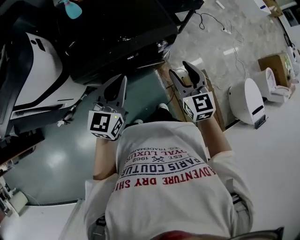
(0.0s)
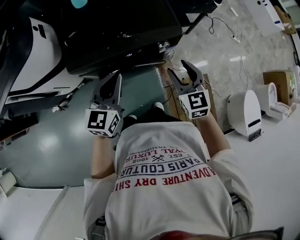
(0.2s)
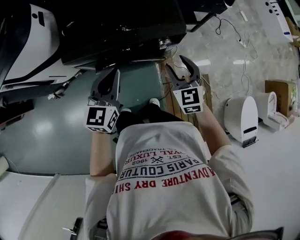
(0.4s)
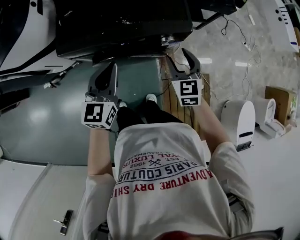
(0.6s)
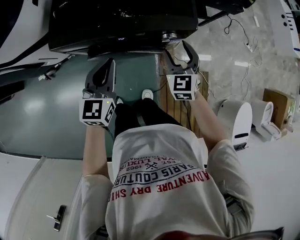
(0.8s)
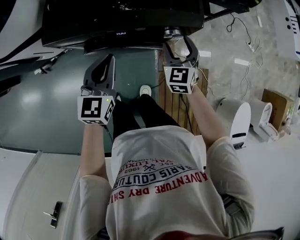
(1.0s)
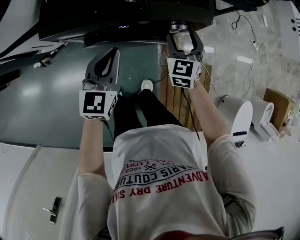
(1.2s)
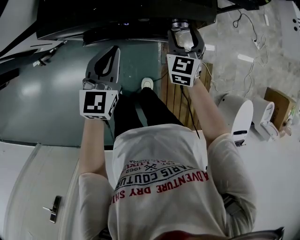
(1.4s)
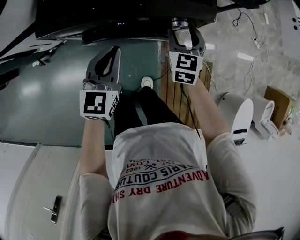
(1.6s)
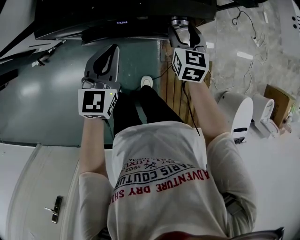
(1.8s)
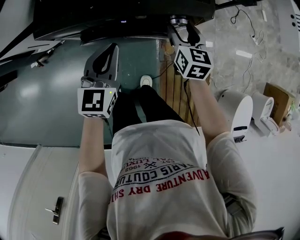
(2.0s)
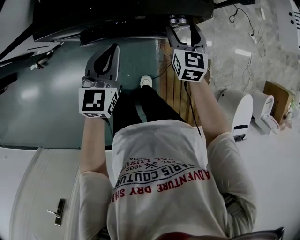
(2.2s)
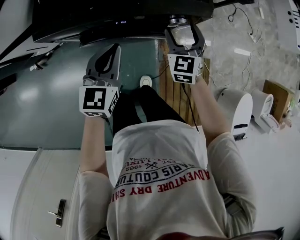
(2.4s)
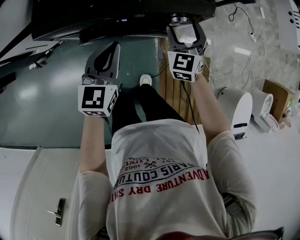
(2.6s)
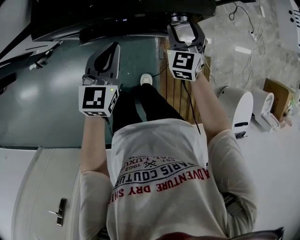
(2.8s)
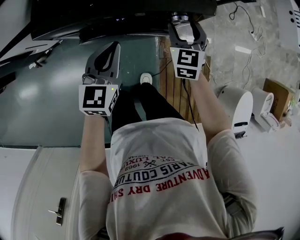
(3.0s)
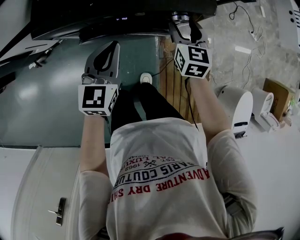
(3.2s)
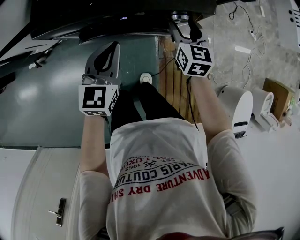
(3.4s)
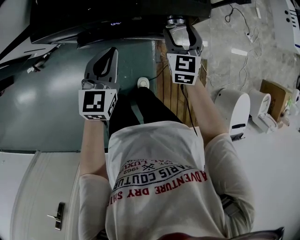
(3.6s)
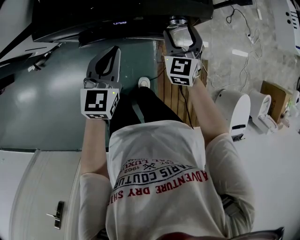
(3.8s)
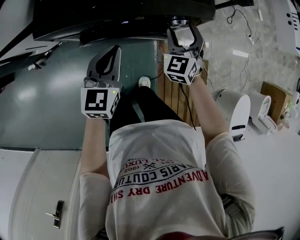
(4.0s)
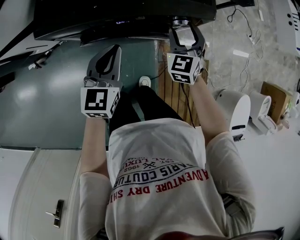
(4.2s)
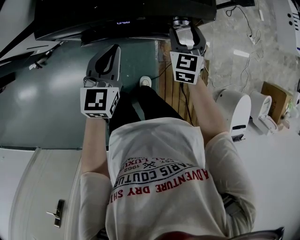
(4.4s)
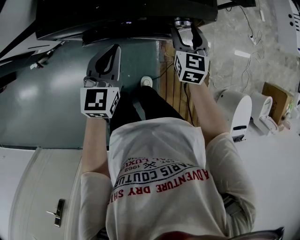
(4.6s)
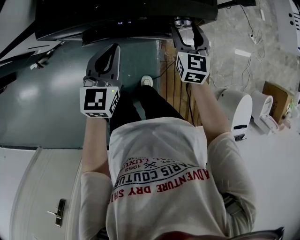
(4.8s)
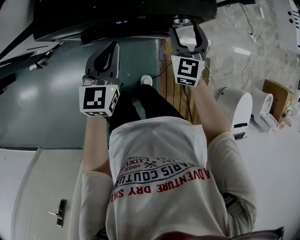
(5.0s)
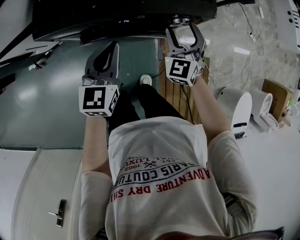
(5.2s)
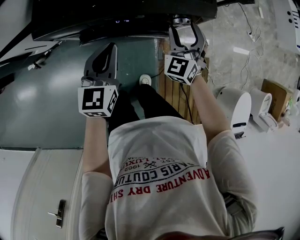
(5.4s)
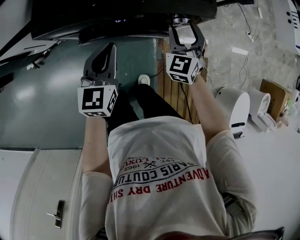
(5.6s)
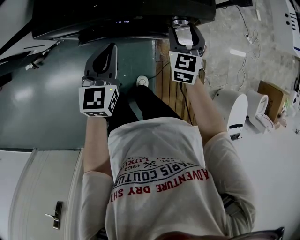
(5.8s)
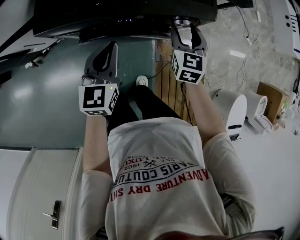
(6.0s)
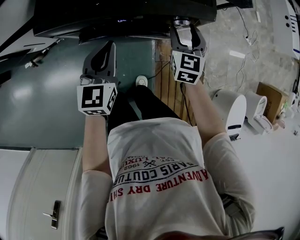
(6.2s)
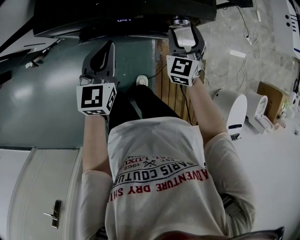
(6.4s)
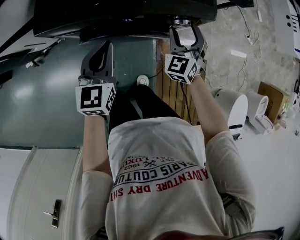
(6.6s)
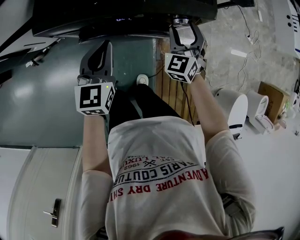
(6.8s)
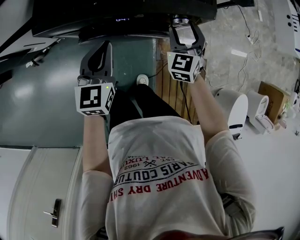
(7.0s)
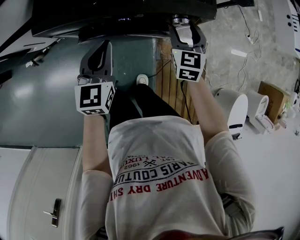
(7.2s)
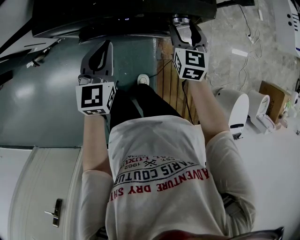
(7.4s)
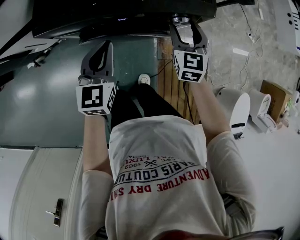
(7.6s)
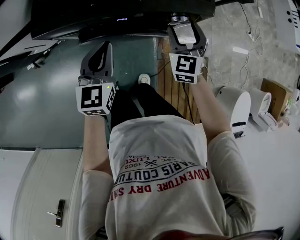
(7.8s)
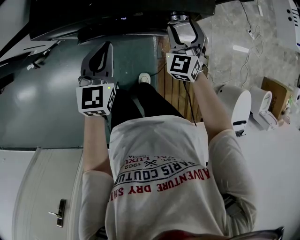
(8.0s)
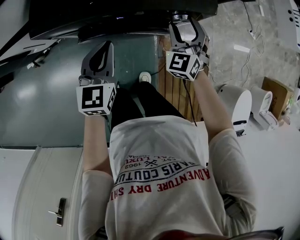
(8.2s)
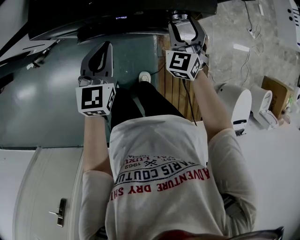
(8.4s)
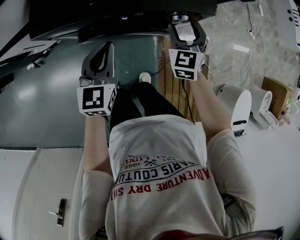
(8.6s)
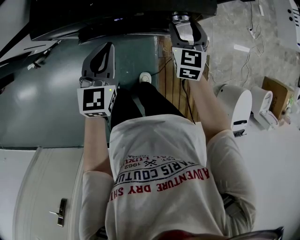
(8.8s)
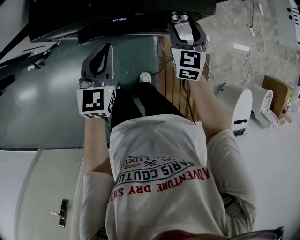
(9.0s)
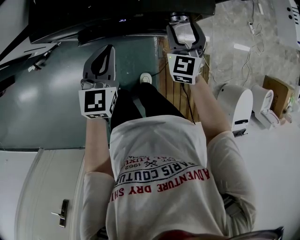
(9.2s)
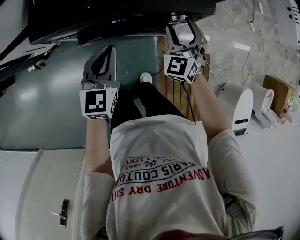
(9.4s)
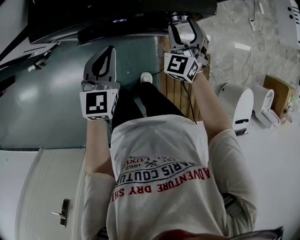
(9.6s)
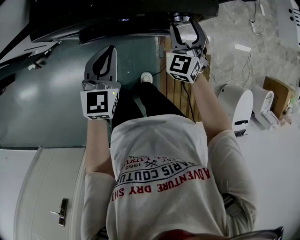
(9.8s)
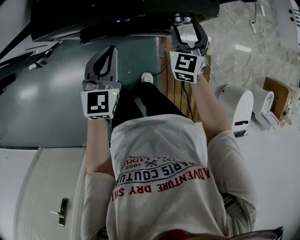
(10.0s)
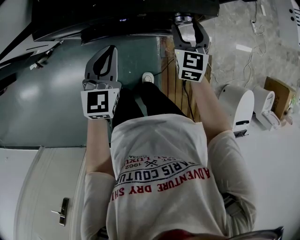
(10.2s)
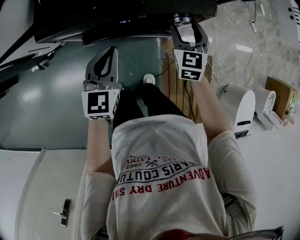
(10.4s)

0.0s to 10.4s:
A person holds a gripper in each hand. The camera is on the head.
0.0s to 1.4s: The right gripper moves downward and forward, about 25 cm, while the left gripper heads downward, covering roughly 15 cm, and swivels roughly 30 degrees.
3.0s to 4.4s: The grippers make only small movements.

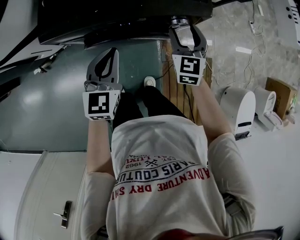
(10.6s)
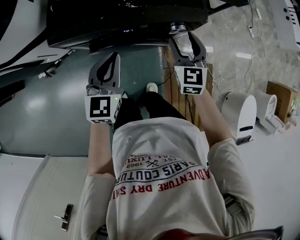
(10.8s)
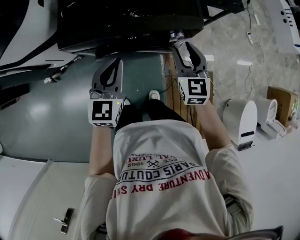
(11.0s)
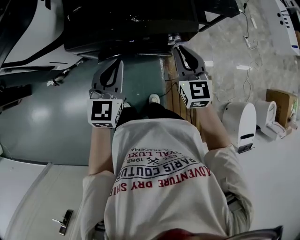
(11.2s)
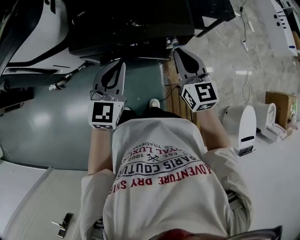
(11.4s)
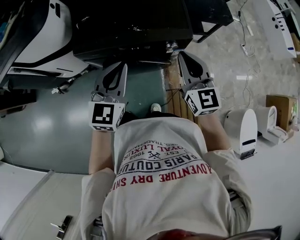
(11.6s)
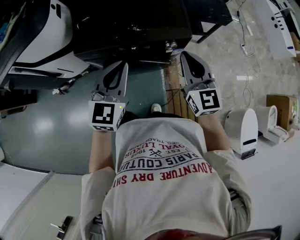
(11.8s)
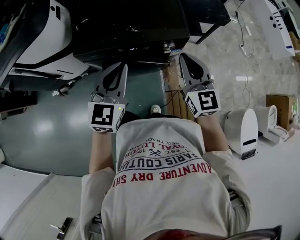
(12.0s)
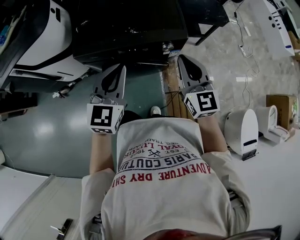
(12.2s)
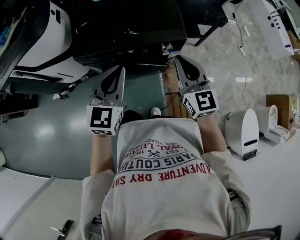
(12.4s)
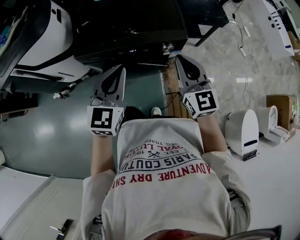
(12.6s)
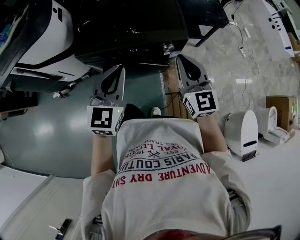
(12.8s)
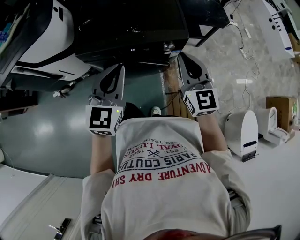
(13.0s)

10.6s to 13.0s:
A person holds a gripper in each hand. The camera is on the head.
10.6s to 11.8s: The right gripper goes some 25 cm upward and backward, swivels some 20 degrees, and closes its fingers. Meanwhile the left gripper travels upward by about 20 cm.
11.8s to 13.0s: The grippers stay close to where they were, moving slightly.

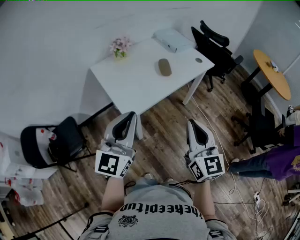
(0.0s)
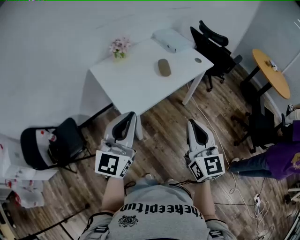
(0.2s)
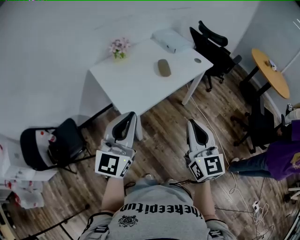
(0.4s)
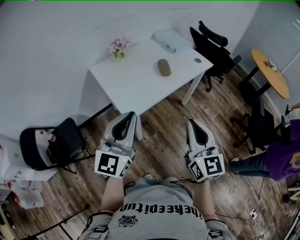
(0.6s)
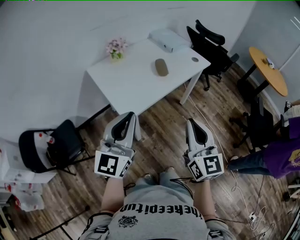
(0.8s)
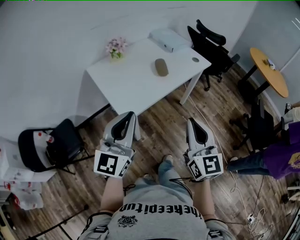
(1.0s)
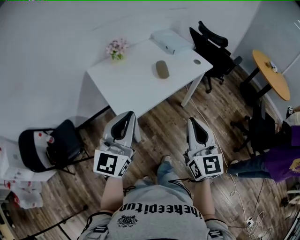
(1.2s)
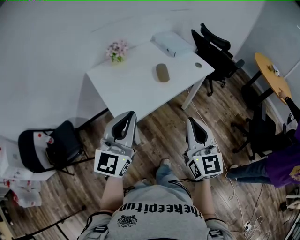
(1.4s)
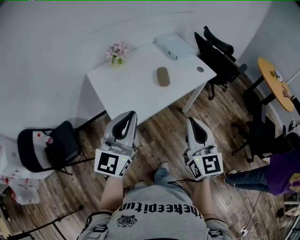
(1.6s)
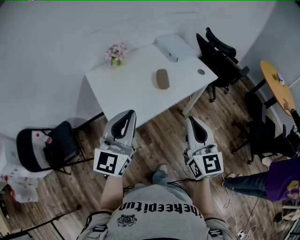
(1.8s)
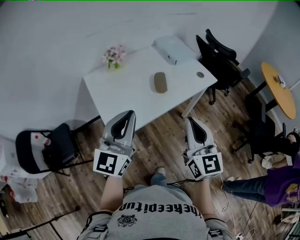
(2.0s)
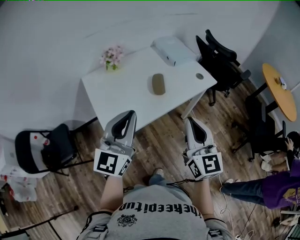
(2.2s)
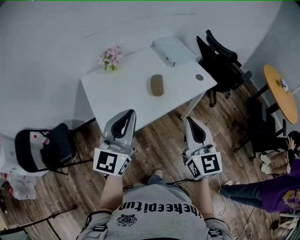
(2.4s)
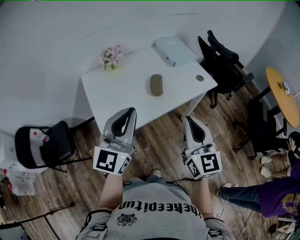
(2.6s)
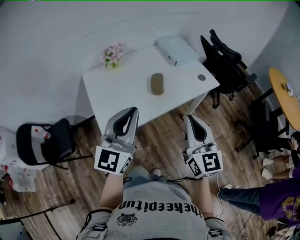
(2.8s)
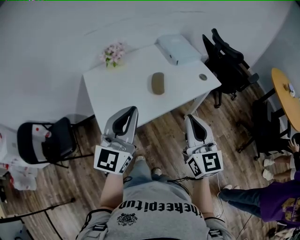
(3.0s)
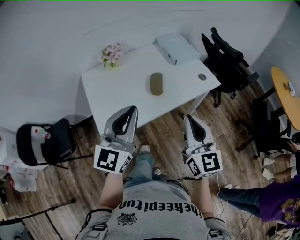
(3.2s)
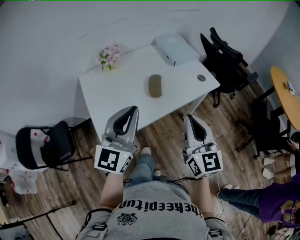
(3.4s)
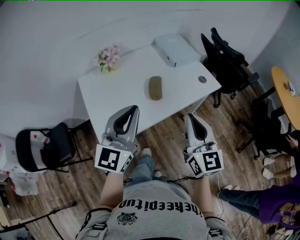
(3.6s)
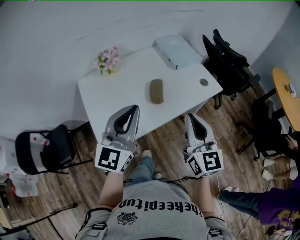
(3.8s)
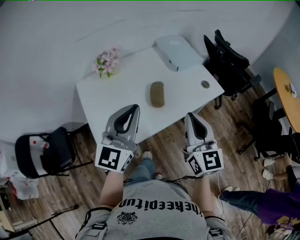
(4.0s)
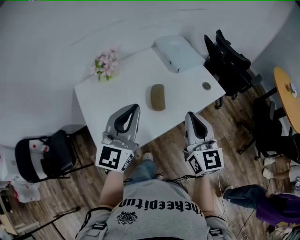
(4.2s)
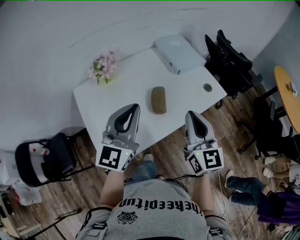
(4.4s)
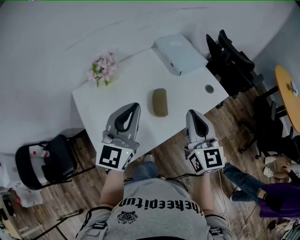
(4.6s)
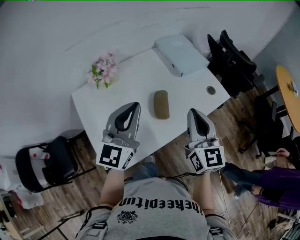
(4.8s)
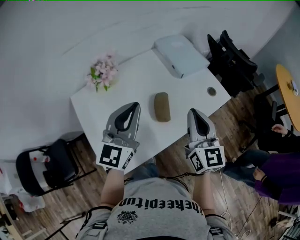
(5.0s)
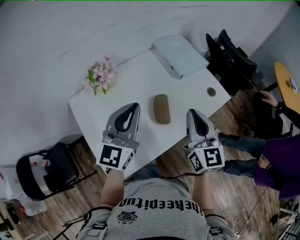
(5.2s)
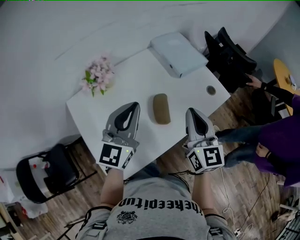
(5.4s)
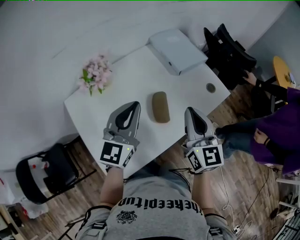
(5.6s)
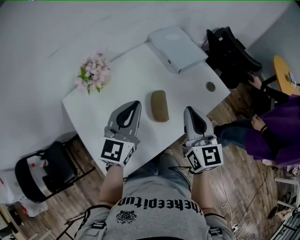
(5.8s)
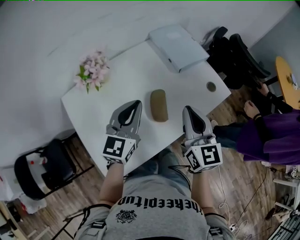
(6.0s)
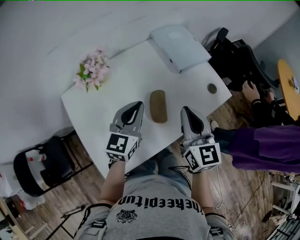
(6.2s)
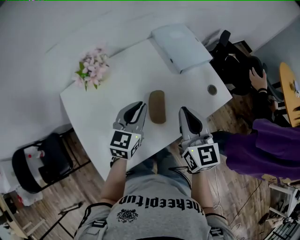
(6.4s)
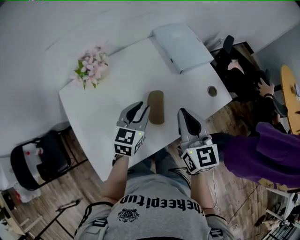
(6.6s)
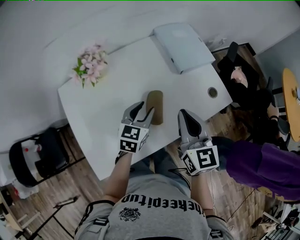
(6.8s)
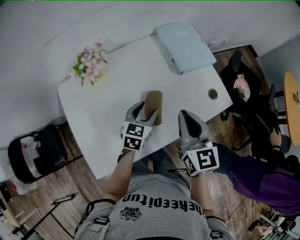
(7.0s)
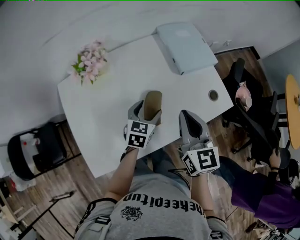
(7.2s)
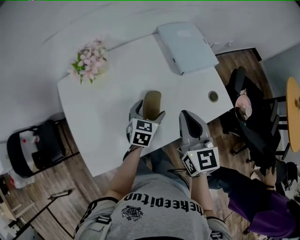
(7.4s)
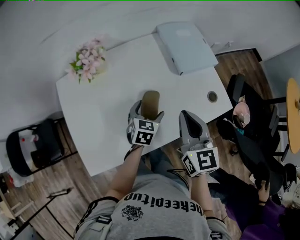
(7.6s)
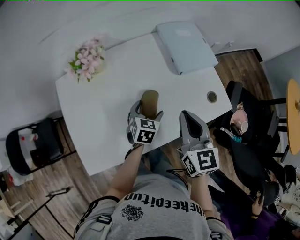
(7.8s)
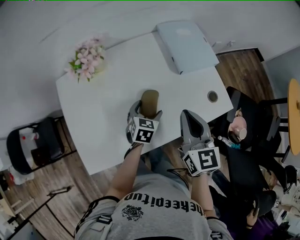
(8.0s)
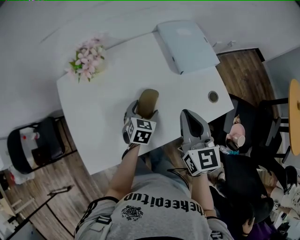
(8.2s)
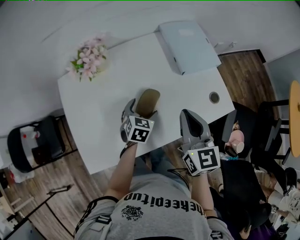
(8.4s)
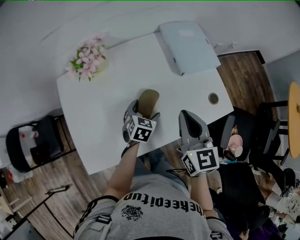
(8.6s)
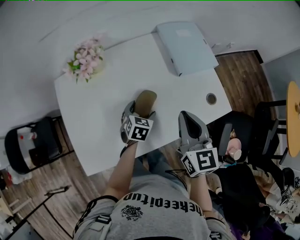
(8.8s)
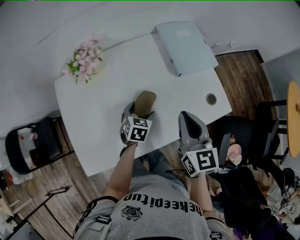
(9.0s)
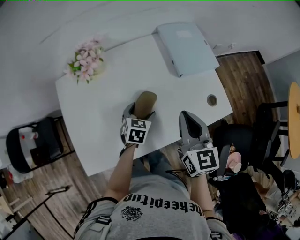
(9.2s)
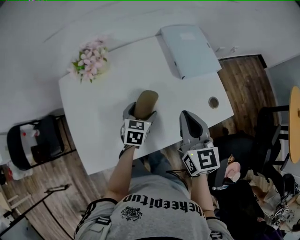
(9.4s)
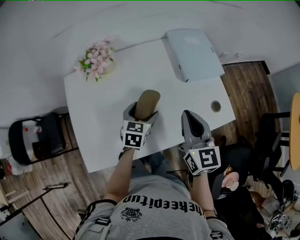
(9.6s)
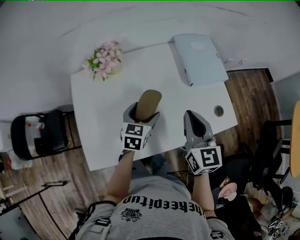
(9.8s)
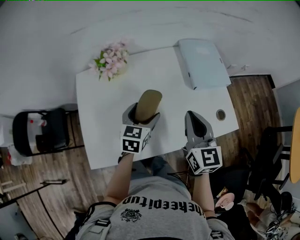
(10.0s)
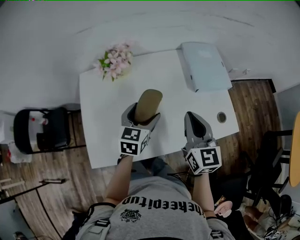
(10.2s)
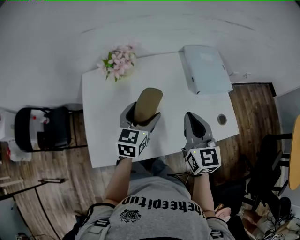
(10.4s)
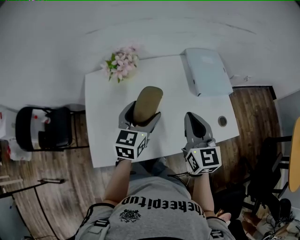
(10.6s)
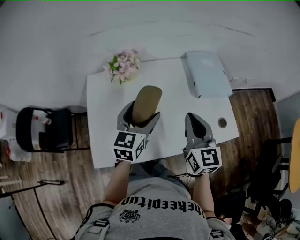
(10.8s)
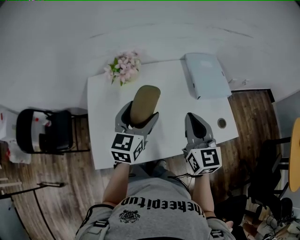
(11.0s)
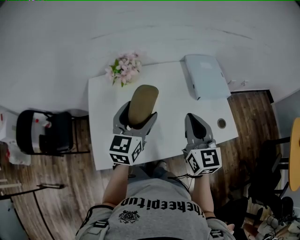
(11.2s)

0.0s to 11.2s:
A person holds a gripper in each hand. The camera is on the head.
0.0s to 1.6s: The grippers both shift forward by about 10 cm.
1.6s to 3.2s: Both grippers move forward and to the right, about 15 cm.
3.2s to 4.8s: Both grippers travel together forward, approximately 20 cm.
4.8s to 6.4s: The left gripper moves downward and forward, some 15 cm, and changes its angle by some 20 degrees, while the right gripper travels forward by approximately 5 cm.
6.4s to 8.0s: The right gripper changes place by approximately 5 cm; the left gripper is displaced downward and to the right by some 15 cm, rotates approximately 30 degrees, and opens.
8.0s to 9.6s: The left gripper changes place by approximately 5 cm.
9.6s to 11.2s: The left gripper heads upward and to the left, covering roughly 20 cm, and changes its angle by approximately 30 degrees. Meanwhile the right gripper shifts roughly 10 cm to the left and upward.
